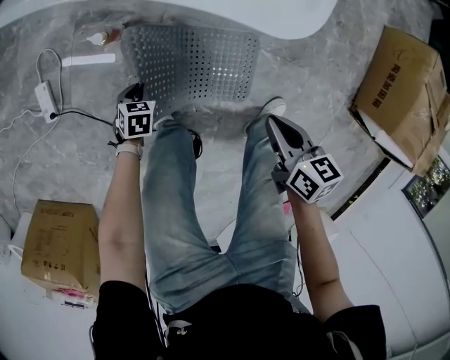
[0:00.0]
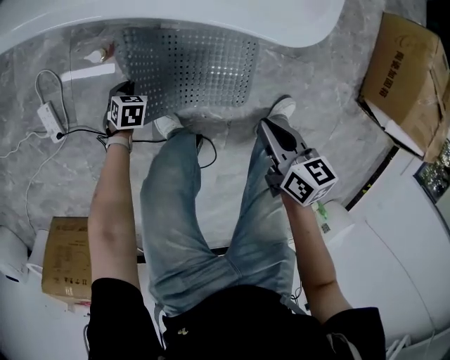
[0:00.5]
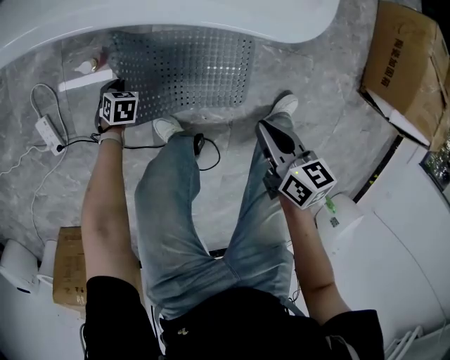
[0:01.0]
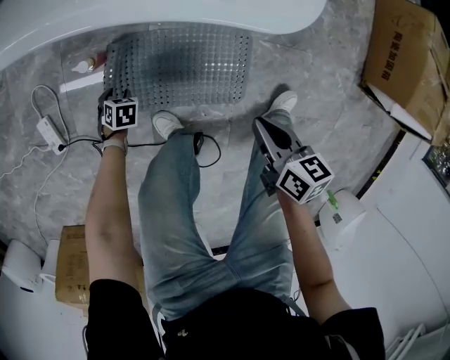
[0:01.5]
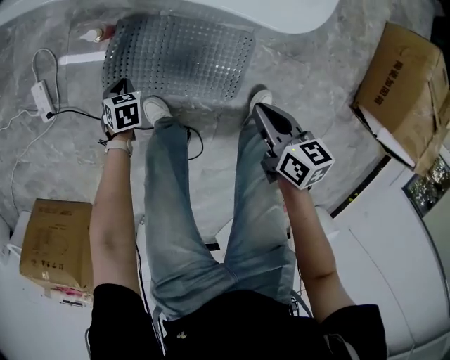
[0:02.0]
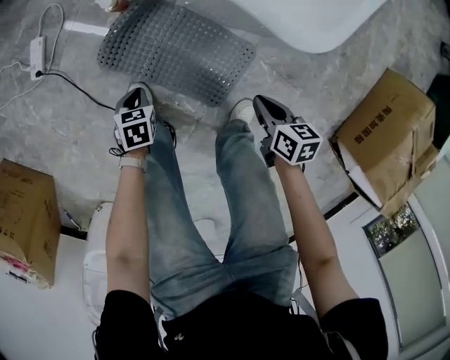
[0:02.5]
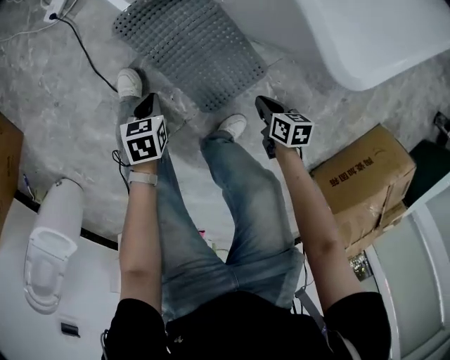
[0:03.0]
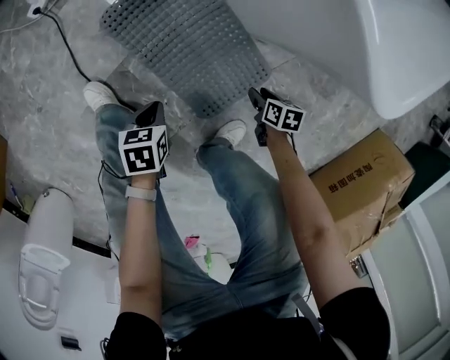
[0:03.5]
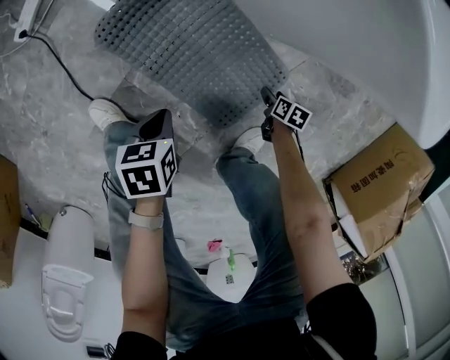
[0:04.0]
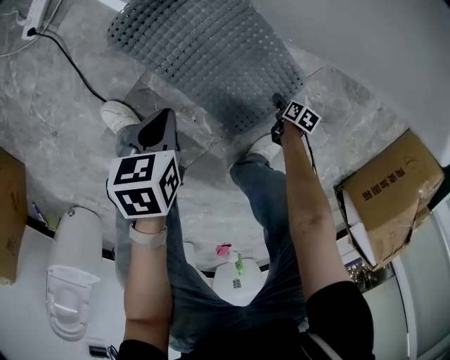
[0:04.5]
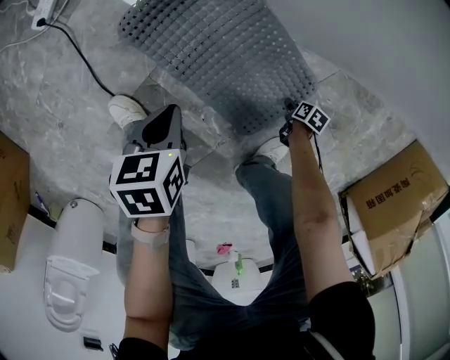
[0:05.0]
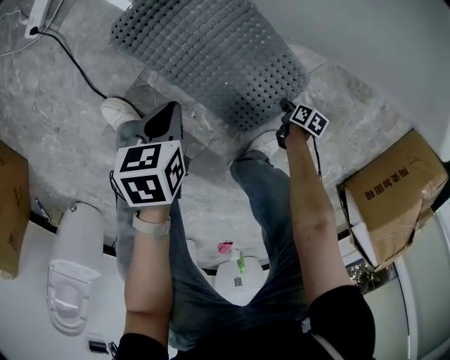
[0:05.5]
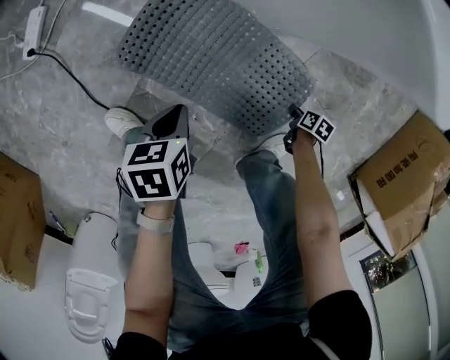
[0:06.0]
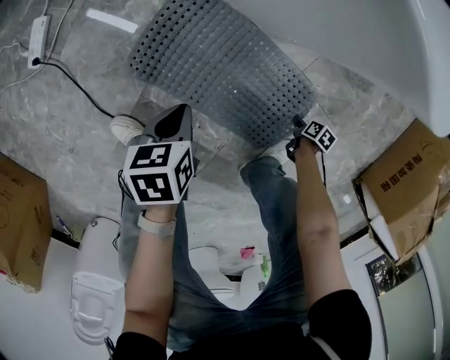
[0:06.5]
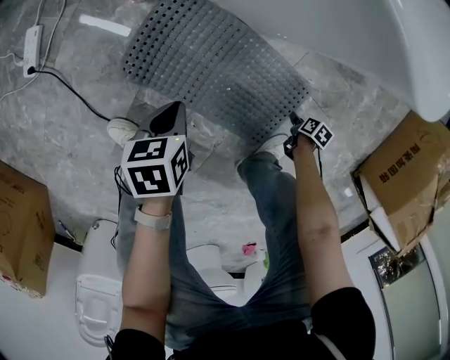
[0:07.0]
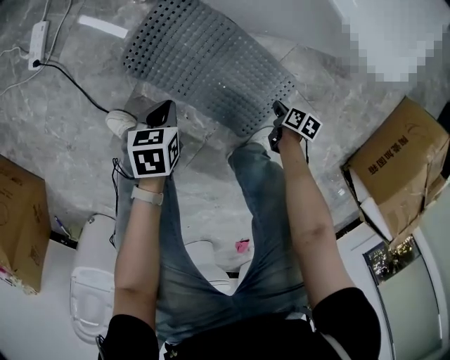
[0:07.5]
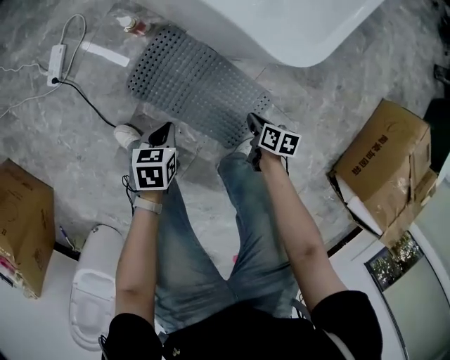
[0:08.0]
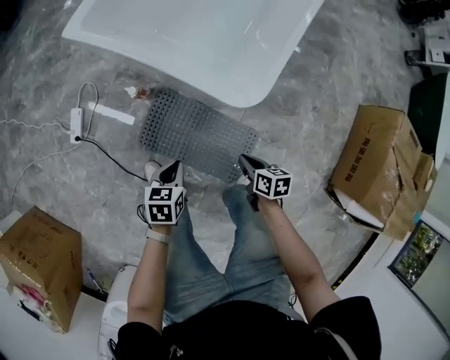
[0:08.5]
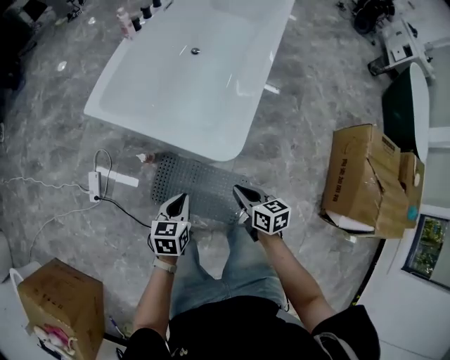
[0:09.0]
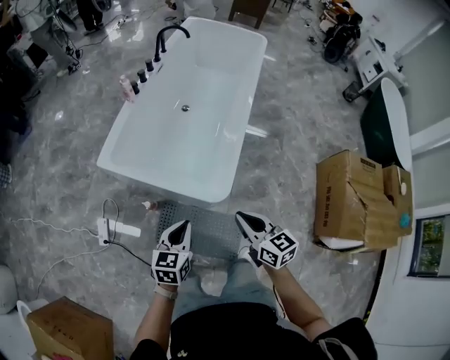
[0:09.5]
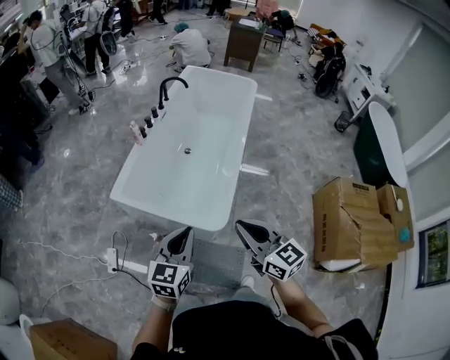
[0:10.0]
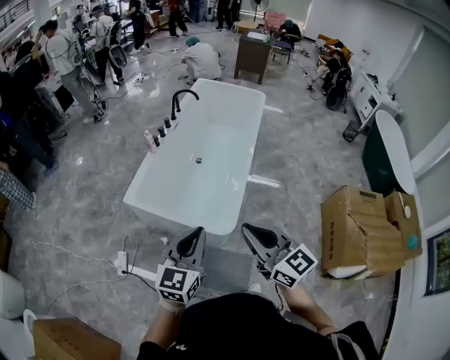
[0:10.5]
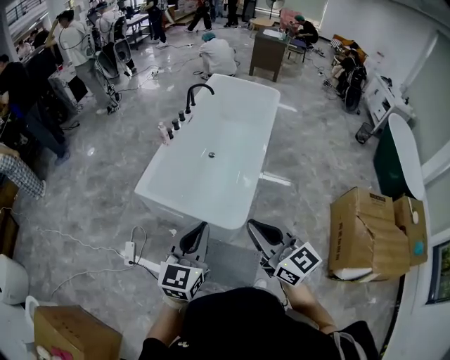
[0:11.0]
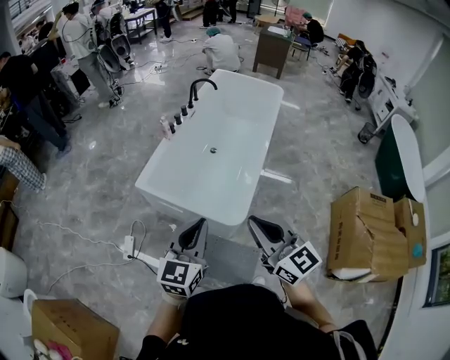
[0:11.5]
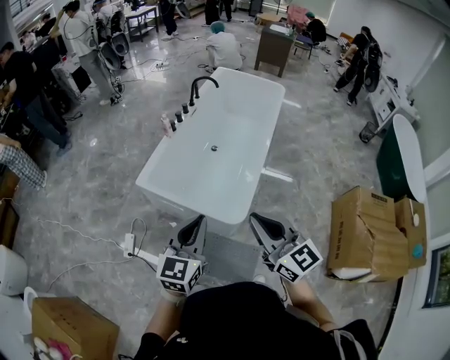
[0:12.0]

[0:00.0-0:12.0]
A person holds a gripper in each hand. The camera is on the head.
0:00.0 to 0:02.0: The left gripper moves some 10 cm downward and comes back, and opens, then closes once more.
0:02.0 to 0:04.0: The left gripper reaches about 5 cm upward, then returns, and rotates around the line of its fingers by approximately 40 degrees, counterclockwise from behind, while the right gripper is displaced downward by roughly 40 cm, changes its angle by some 30 degrees, and opens its fingers.
0:04.0 to 0:06.0: The right gripper ends up some 10 cm from where it was, and closes.
0:06.0 to 0:08.0: The left gripper travels upward by about 15 cm. Meanwhile the right gripper shifts approximately 25 cm upward, turns by approximately 20 degrees, and opens, then closes once more.
0:08.0 to 0:10.0: Both grippers move upward, some 80 cm. The right gripper tilts its fingers roughly 50 degrees upward; the left gripper points its fingers about 50 degrees further upward.
0:10.0 to 0:12.0: The grippers both shift upward by approximately 10 cm.

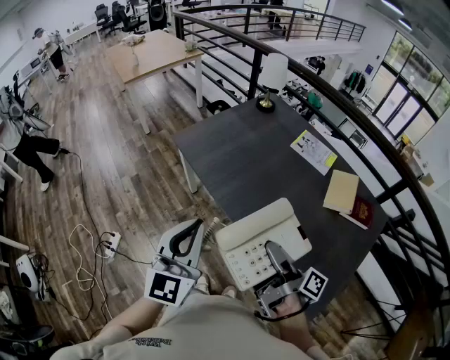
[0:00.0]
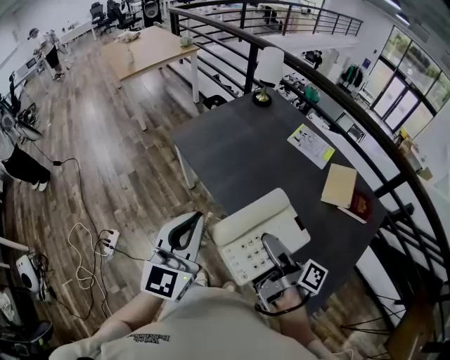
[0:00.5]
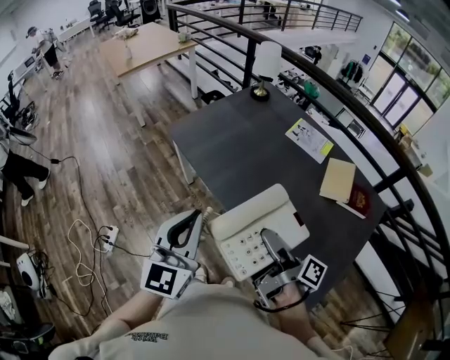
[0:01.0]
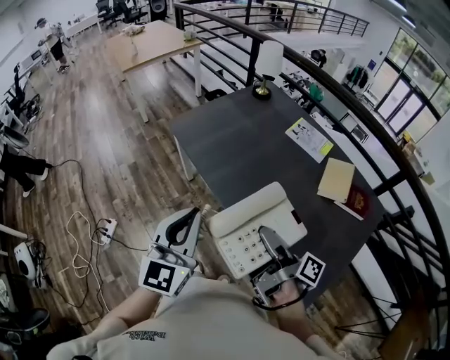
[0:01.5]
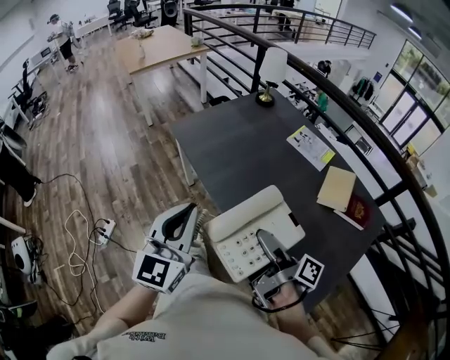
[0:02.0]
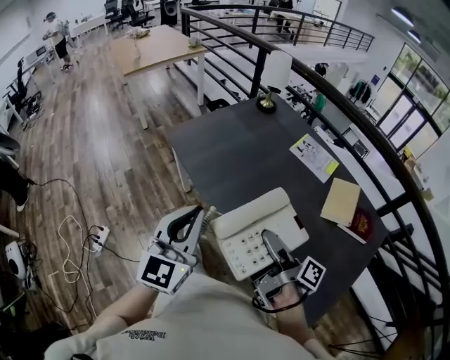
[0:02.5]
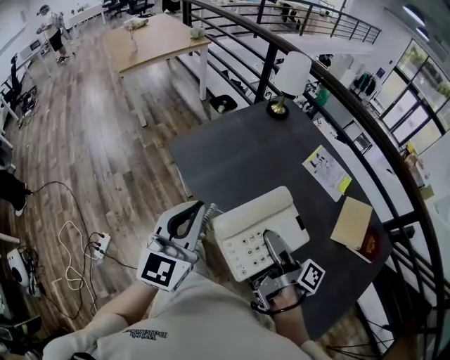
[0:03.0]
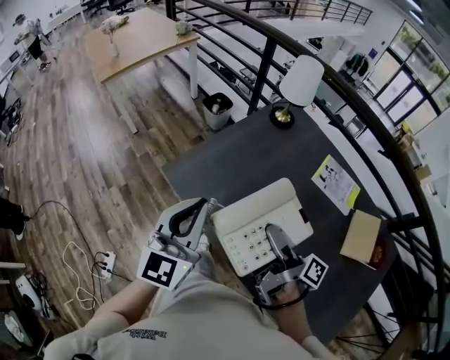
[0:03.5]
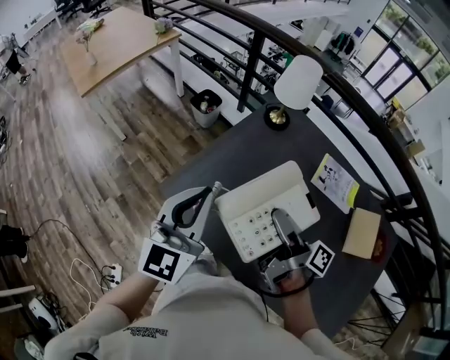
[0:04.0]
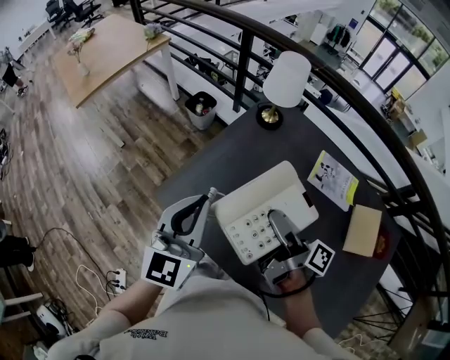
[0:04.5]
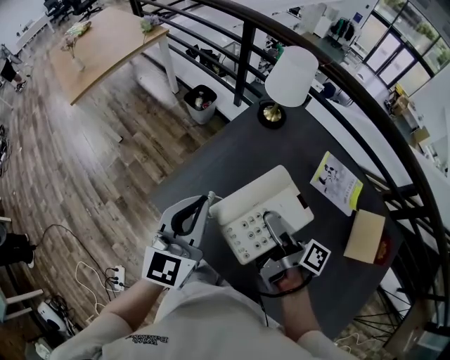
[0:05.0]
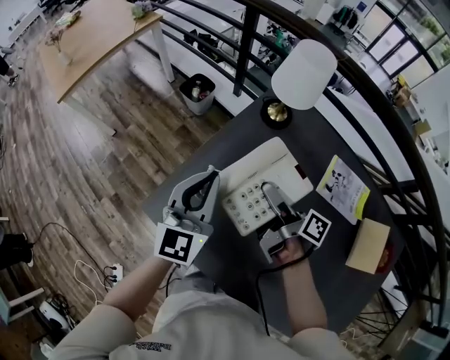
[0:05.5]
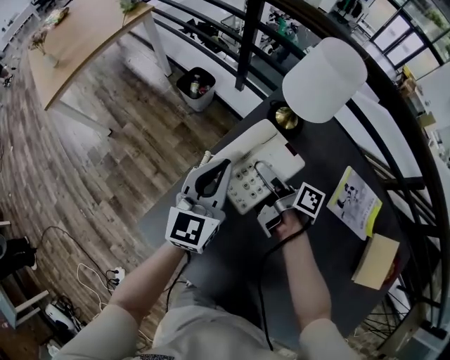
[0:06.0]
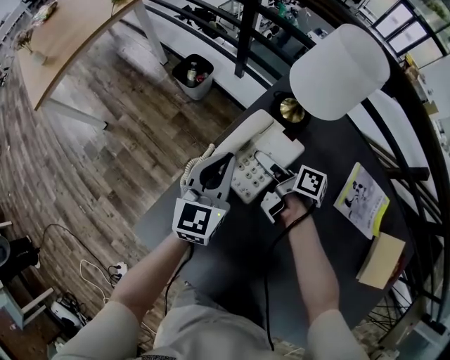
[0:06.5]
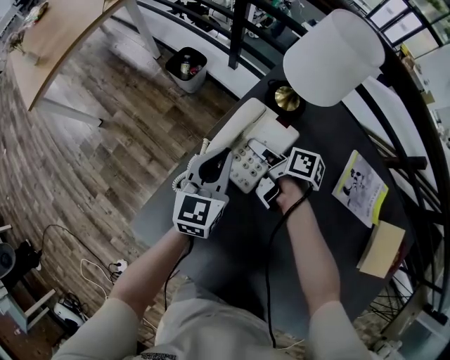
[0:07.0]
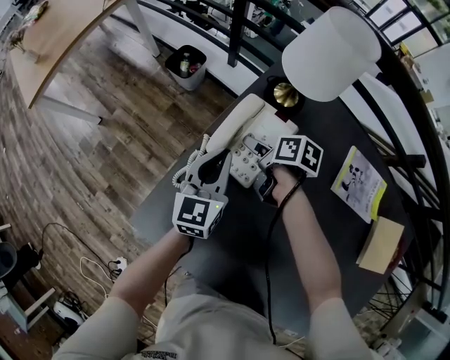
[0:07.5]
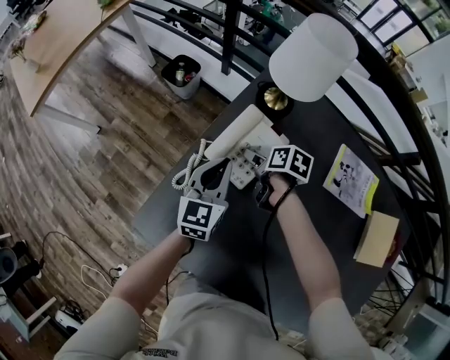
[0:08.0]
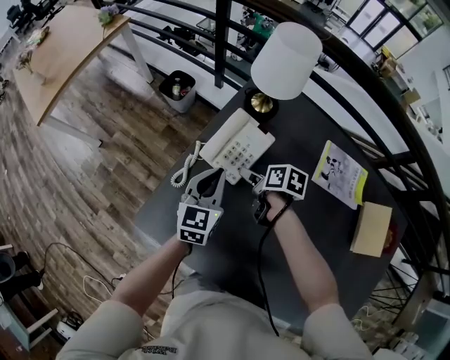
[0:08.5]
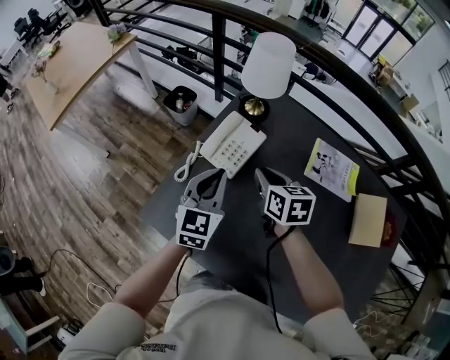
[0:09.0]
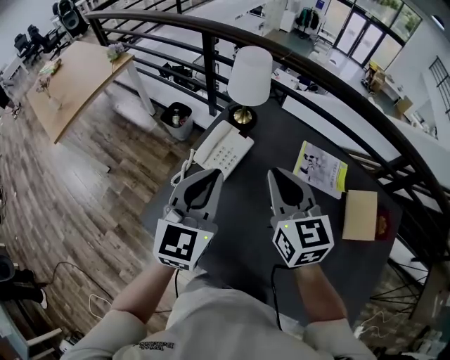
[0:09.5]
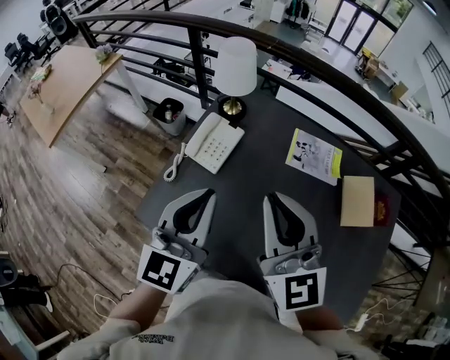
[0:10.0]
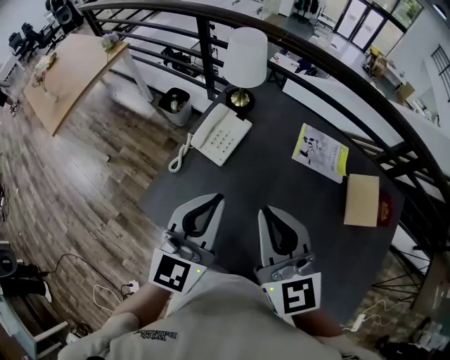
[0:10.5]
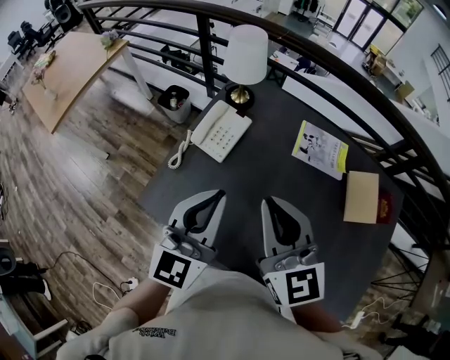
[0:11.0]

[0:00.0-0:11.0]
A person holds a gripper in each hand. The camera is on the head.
0:00.0 to 0:02.0: The left gripper ends up approximately 5 cm from where it was.
0:02.0 to 0:03.5: The left gripper ends up about 40 cm from where it was.
0:03.5 to 0:05.5: The left gripper shifts by some 30 cm.
0:05.5 to 0:07.5: The left gripper is displaced downward by about 15 cm.
0:07.5 to 0:09.0: The left gripper shifts some 10 cm upward.
0:09.0 to 0:11.0: The left gripper moves upward, some 15 cm.

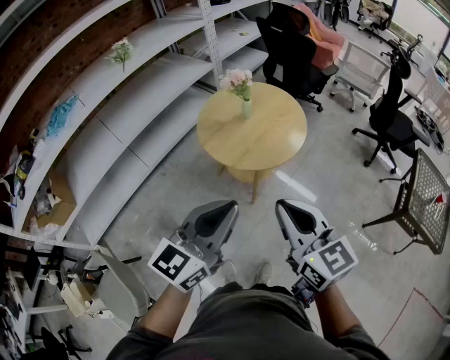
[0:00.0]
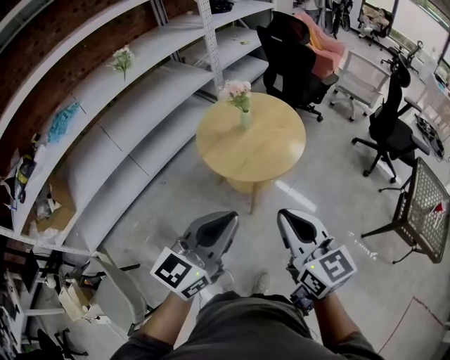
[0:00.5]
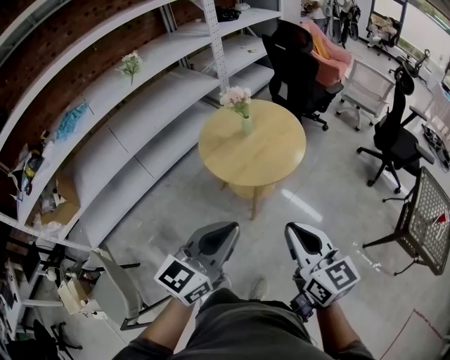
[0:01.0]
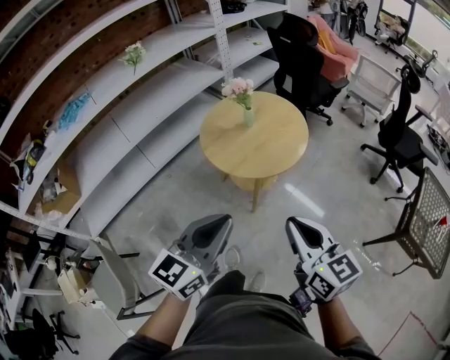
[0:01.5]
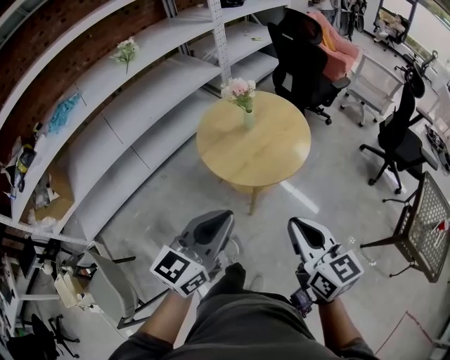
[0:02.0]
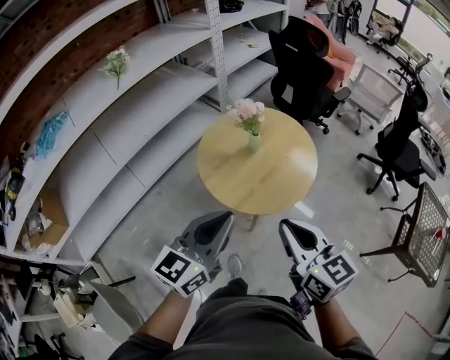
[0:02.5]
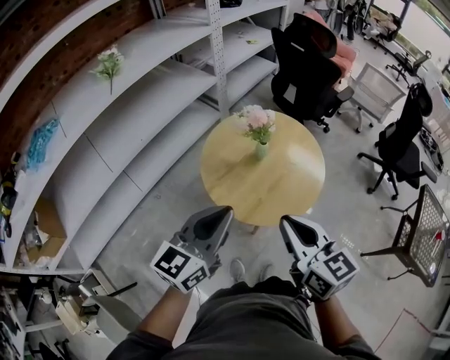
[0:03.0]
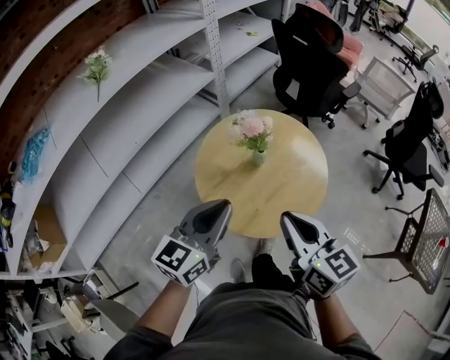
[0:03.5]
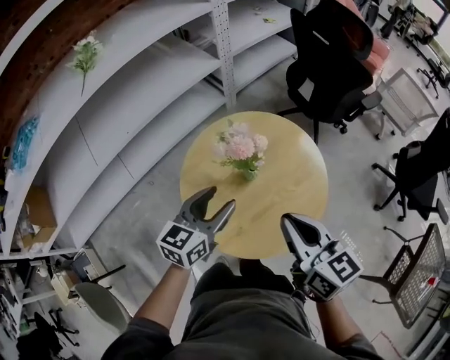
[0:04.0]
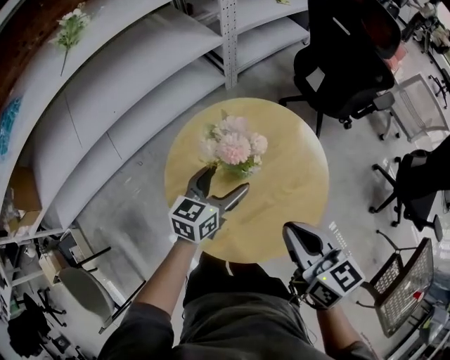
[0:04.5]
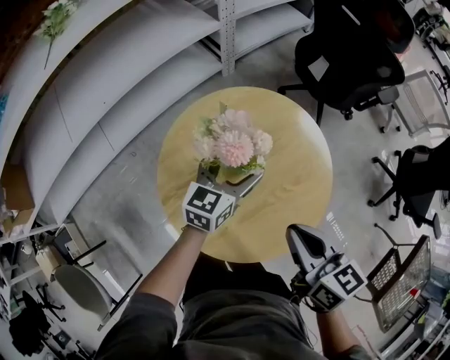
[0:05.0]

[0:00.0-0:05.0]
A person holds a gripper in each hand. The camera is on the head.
0:00.0 to 0:02.5: The grippers both shift forward by approximately 15 cm.
0:02.5 to 0:05.0: Both grippers travel together forward and downward, about 40 cm. The right gripper changes its angle by roughly 20 degrees. Meanwhile the left gripper opens.
